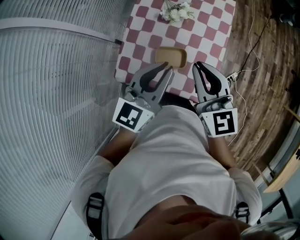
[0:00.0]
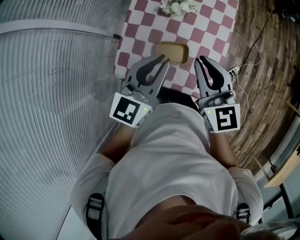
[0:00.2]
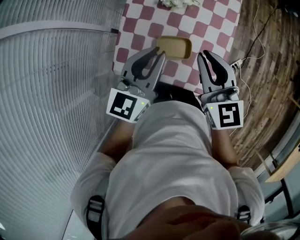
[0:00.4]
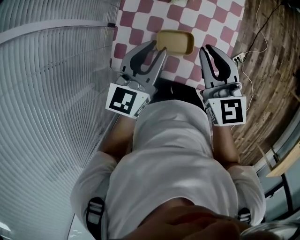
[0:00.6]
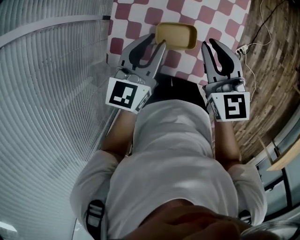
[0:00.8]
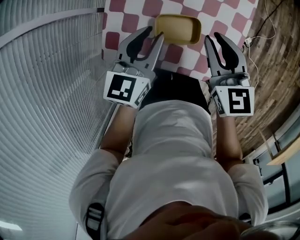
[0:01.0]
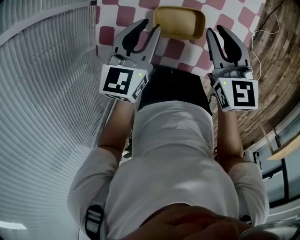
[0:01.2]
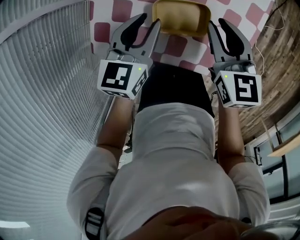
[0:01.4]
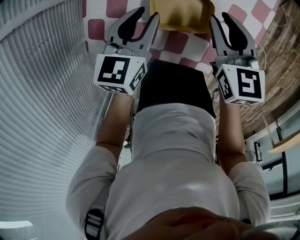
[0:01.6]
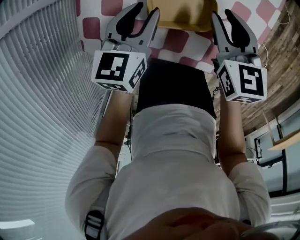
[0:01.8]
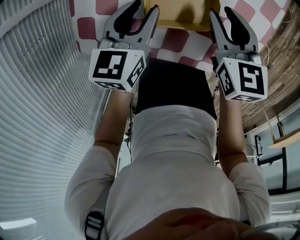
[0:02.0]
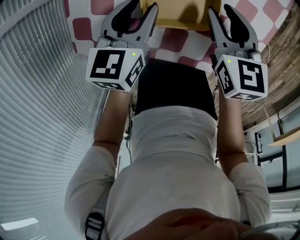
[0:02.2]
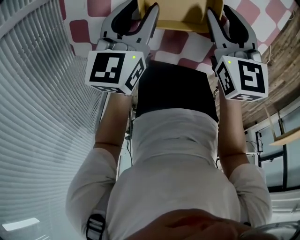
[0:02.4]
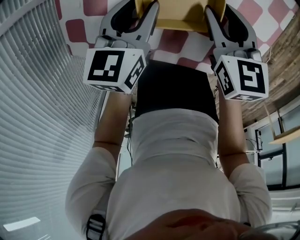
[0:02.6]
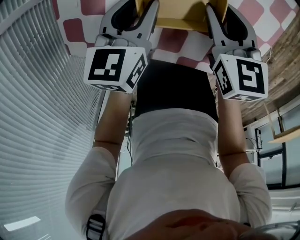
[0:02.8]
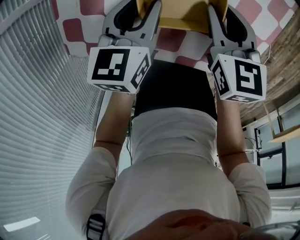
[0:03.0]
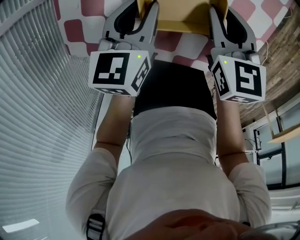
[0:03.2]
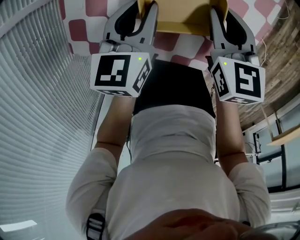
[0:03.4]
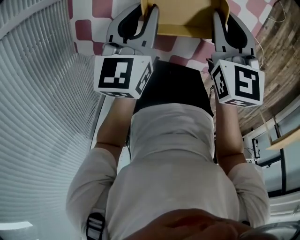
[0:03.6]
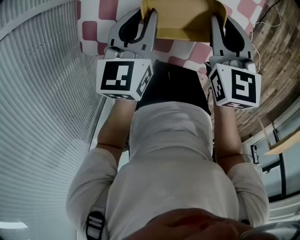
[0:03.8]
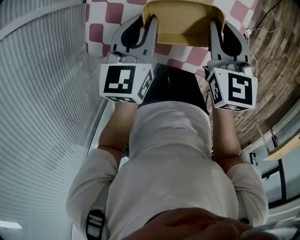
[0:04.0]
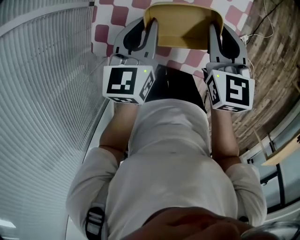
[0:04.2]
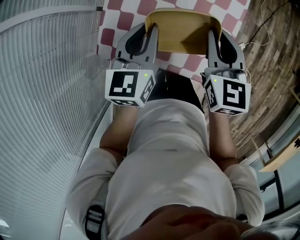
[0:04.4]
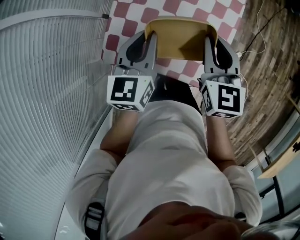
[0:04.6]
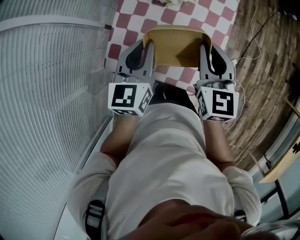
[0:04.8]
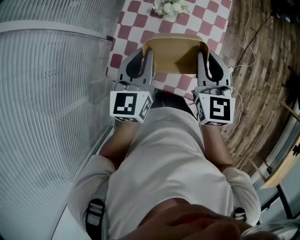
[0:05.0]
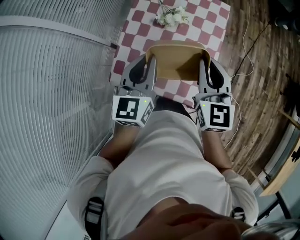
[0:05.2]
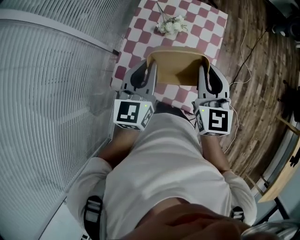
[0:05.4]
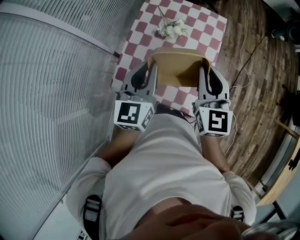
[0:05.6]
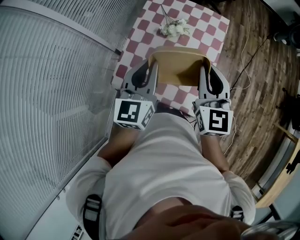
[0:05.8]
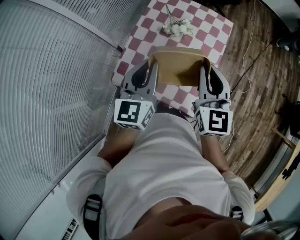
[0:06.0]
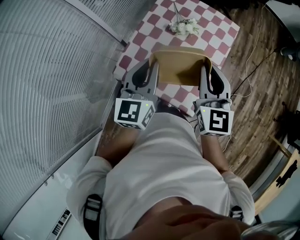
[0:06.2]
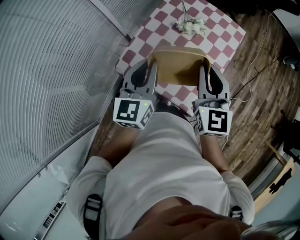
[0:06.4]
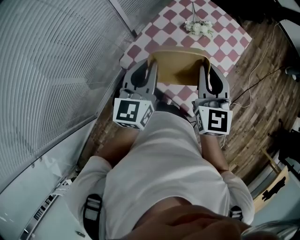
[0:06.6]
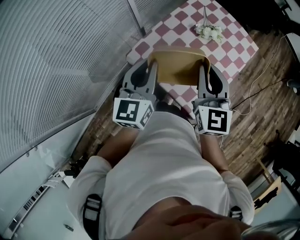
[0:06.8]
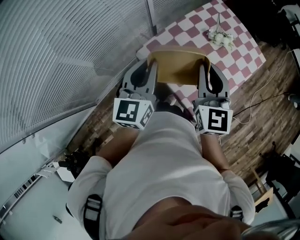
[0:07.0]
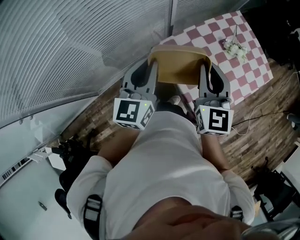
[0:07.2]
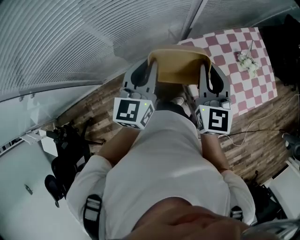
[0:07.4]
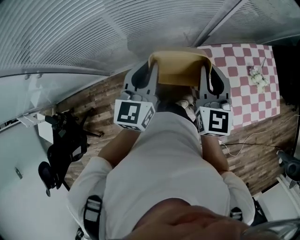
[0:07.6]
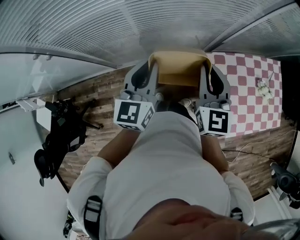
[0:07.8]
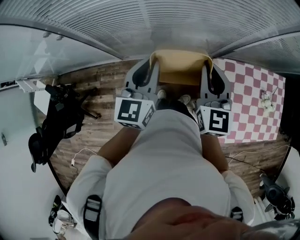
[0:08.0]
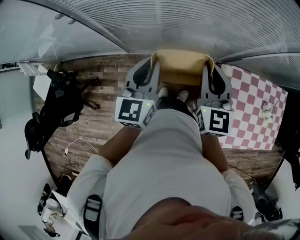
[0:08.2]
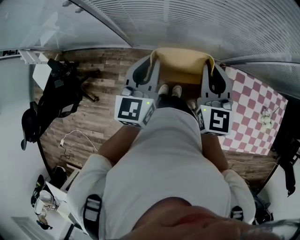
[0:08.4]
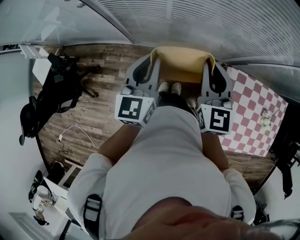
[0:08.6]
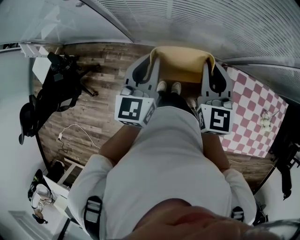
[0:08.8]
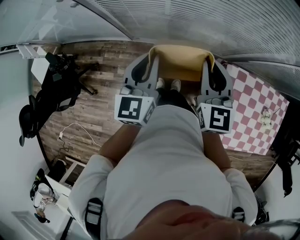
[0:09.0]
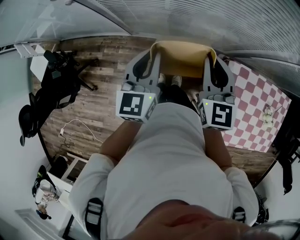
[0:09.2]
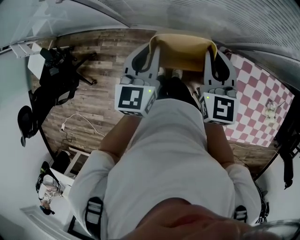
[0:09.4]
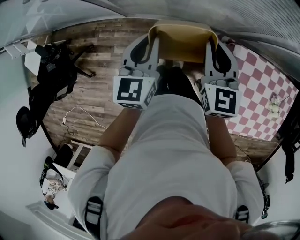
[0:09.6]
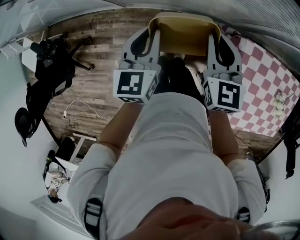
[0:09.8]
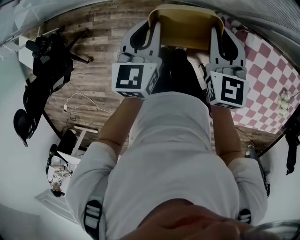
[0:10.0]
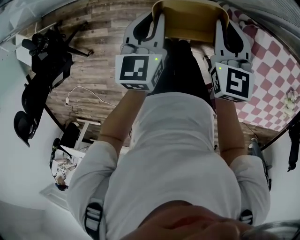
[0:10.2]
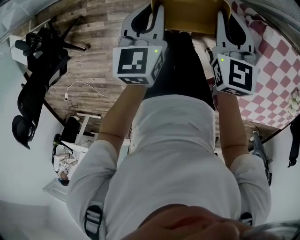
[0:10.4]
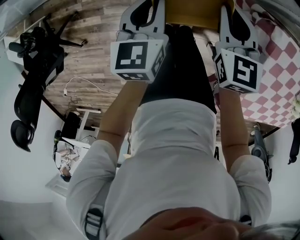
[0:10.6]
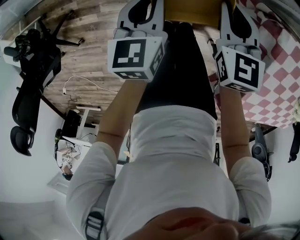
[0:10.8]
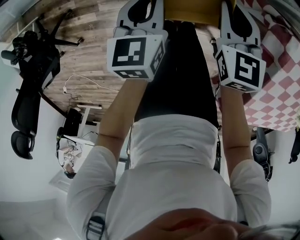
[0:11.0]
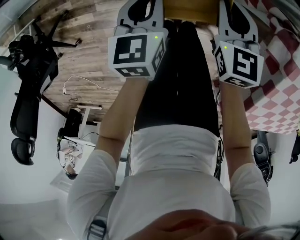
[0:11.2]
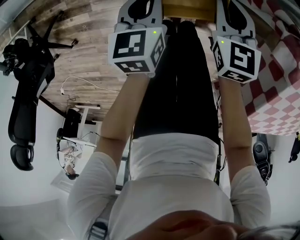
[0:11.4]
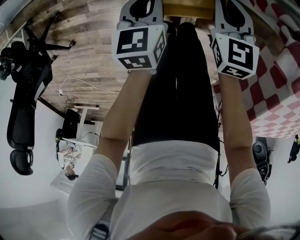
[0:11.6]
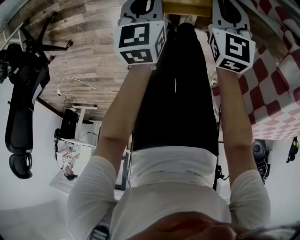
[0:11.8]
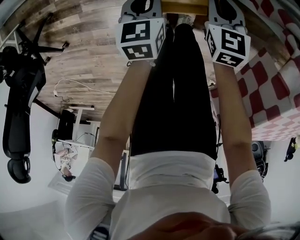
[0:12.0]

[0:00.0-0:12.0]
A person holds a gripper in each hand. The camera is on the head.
0:00.0 to 0:01.6: Both grippers move downward, about 30 cm. The right gripper changes its angle by about 30 degrees. Meanwhile the left gripper rotates some 30 degrees.
0:01.6 to 0:03.0: Both grippers travel together downward, some 10 cm.
0:03.0 to 0:04.4: Both grippers move upward, about 20 cm.
0:04.4 to 0:06.0: Both grippers travel together upward, roughly 20 cm. The right gripper swivels approximately 20 degrees.
0:06.0 to 0:07.6: The right gripper ends up approximately 40 cm from where it was, and changes its angle by some 50 degrees, while the left gripper changes place by approximately 40 cm, and turns by approximately 50 degrees.
0:07.6 to 0:09.0: The left gripper shifts by some 25 cm, and rotates about 30 degrees. Meanwhile the right gripper shifts by approximately 25 cm, and changes its angle by approximately 30 degrees.
0:09.0 to 0:10.4: The two grippers go about 30 cm downward. The left gripper rotates about 20 degrees. Meanwhile the right gripper turns by about 20 degrees.
0:10.4 to 0:12.0: The two grippers go some 35 cm downward.

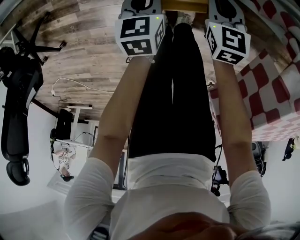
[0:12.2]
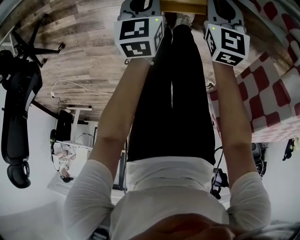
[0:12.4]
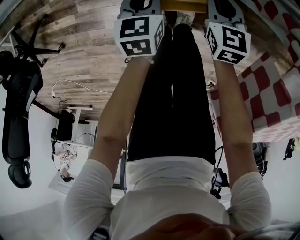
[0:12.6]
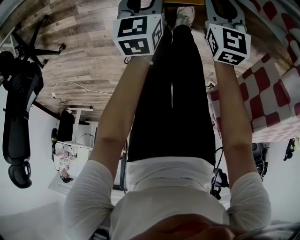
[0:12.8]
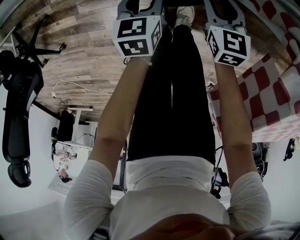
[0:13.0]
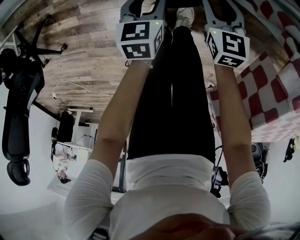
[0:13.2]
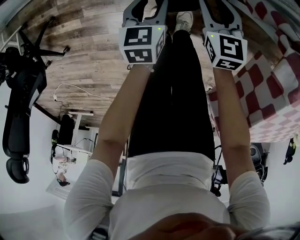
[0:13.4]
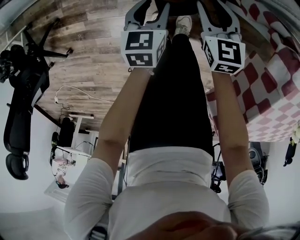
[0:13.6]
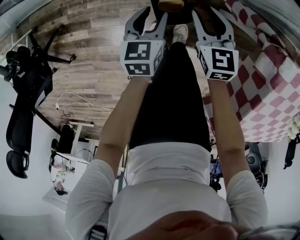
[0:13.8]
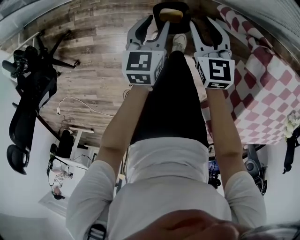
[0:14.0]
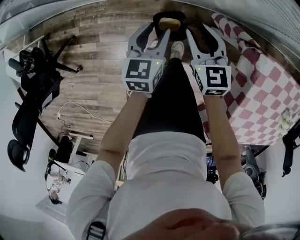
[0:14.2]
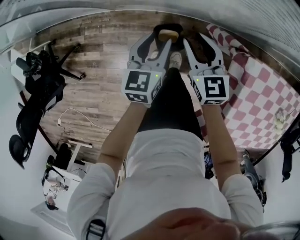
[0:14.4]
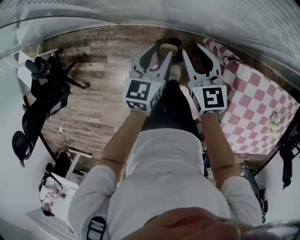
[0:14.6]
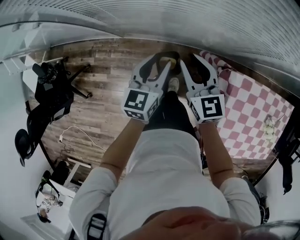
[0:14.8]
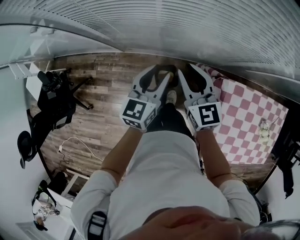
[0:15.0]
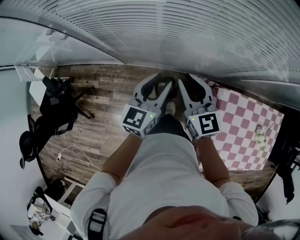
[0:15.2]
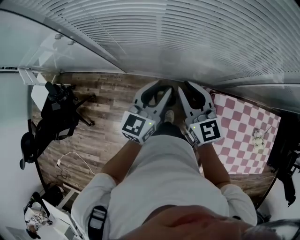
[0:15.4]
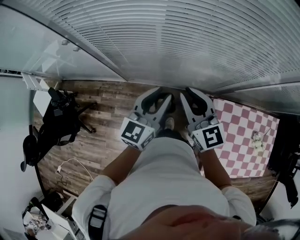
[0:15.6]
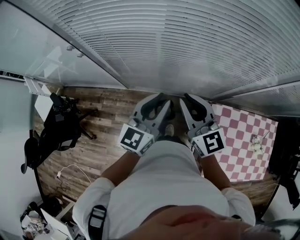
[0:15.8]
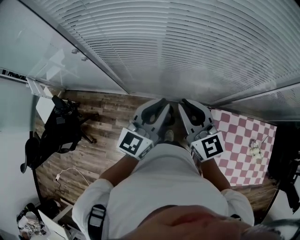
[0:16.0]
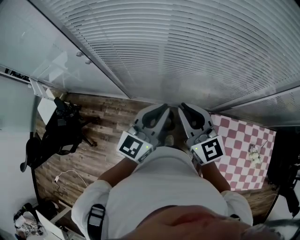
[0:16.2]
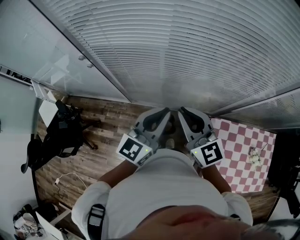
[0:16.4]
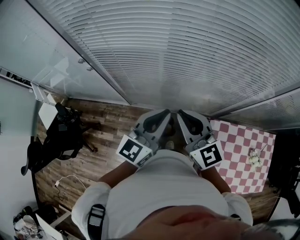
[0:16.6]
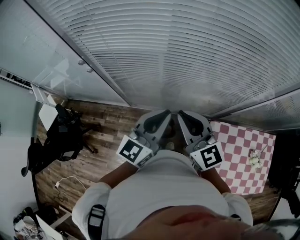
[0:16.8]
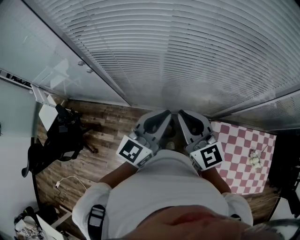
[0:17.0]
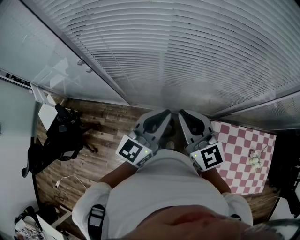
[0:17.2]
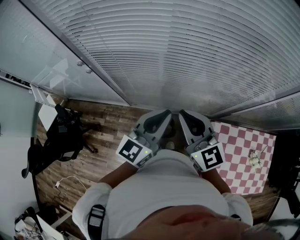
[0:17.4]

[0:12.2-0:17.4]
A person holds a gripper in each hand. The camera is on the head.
0:12.2 to 0:14.0: Both grippers move upward, approximately 20 cm. The left gripper opens. The right gripper opens its fingers.
0:14.0 to 0:15.6: Both grippers travel together upward, about 50 cm. The right gripper points its fingers roughly 30 degrees further upward; the left gripper tilts its fingers approximately 40 degrees upward.
0:15.6 to 0:17.4: The two grippers go some 10 cm upward. The left gripper closes up.

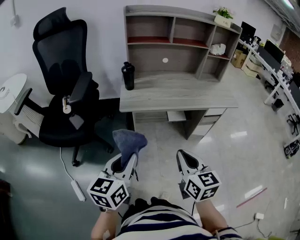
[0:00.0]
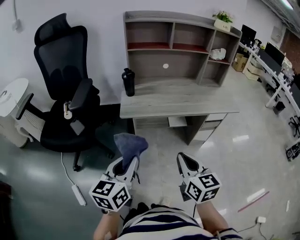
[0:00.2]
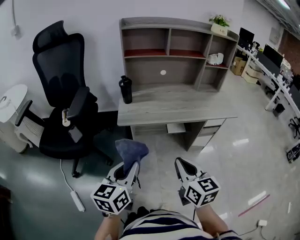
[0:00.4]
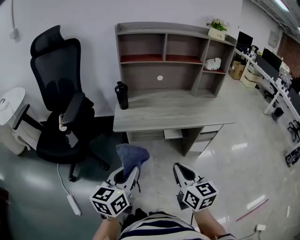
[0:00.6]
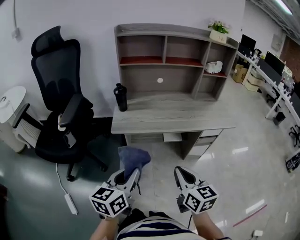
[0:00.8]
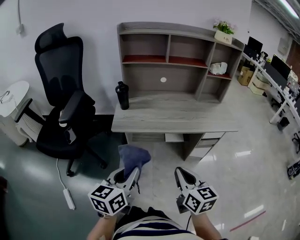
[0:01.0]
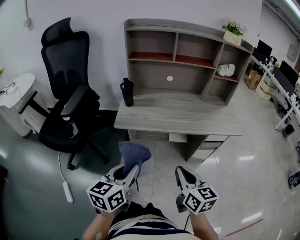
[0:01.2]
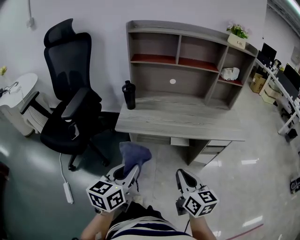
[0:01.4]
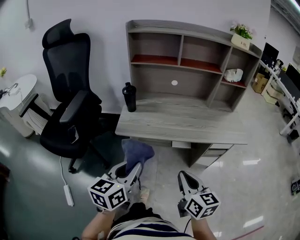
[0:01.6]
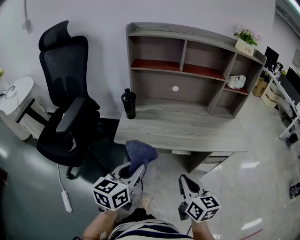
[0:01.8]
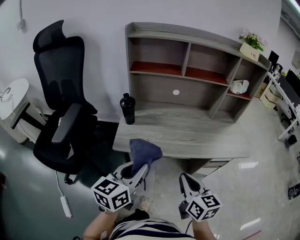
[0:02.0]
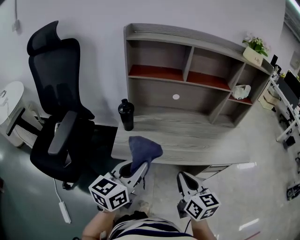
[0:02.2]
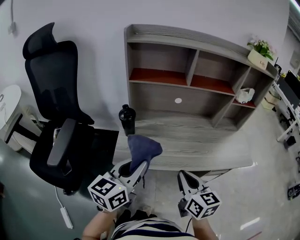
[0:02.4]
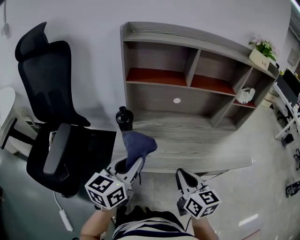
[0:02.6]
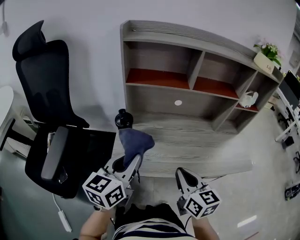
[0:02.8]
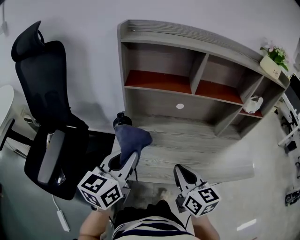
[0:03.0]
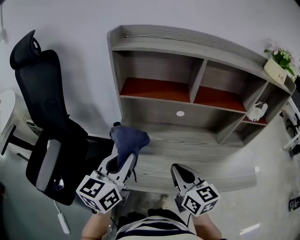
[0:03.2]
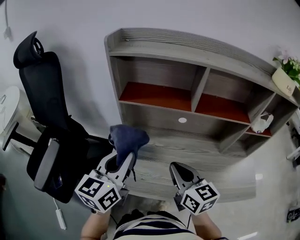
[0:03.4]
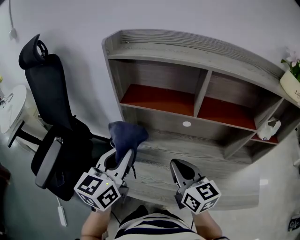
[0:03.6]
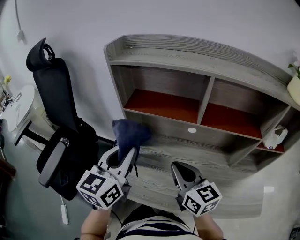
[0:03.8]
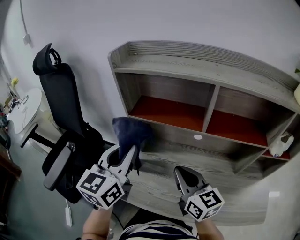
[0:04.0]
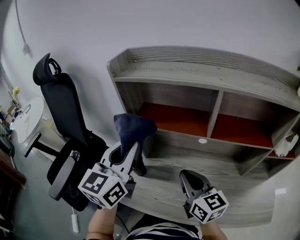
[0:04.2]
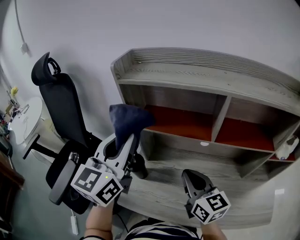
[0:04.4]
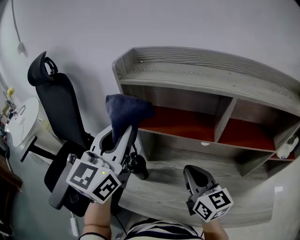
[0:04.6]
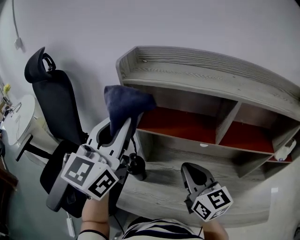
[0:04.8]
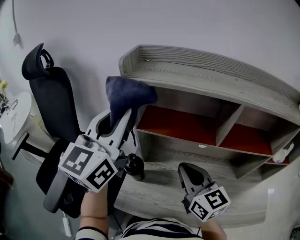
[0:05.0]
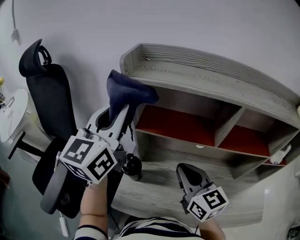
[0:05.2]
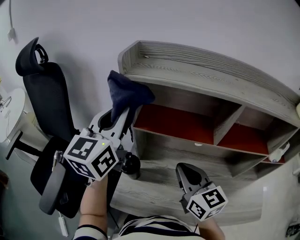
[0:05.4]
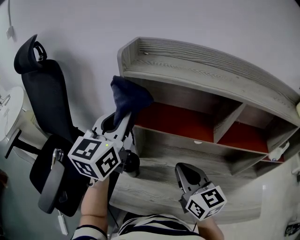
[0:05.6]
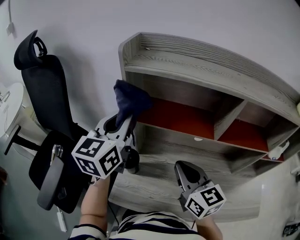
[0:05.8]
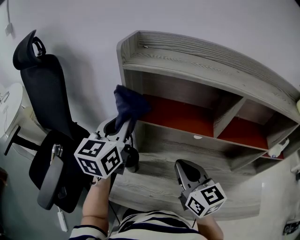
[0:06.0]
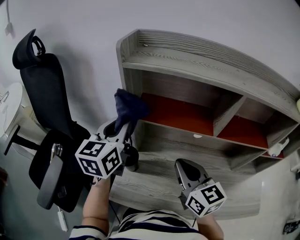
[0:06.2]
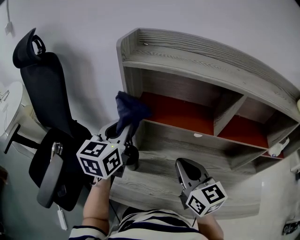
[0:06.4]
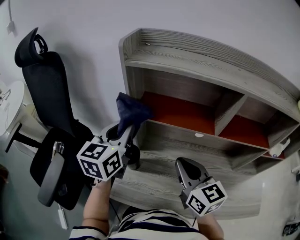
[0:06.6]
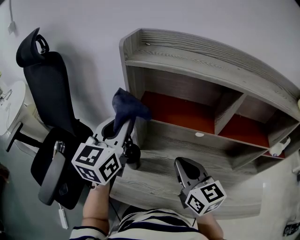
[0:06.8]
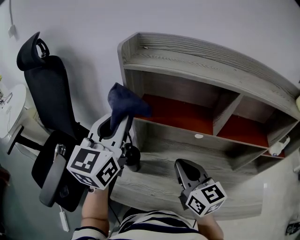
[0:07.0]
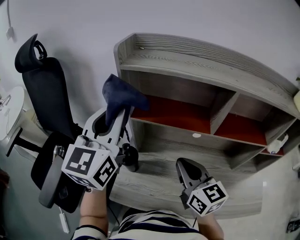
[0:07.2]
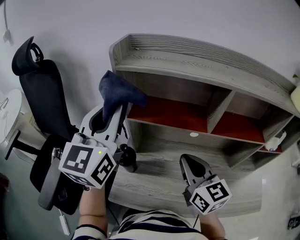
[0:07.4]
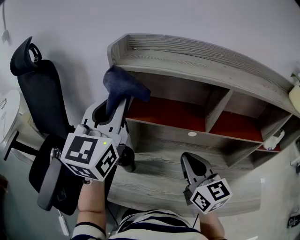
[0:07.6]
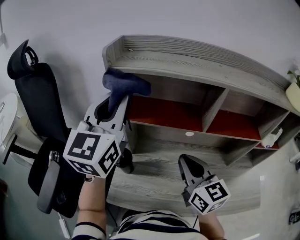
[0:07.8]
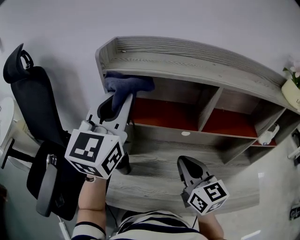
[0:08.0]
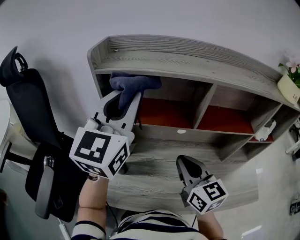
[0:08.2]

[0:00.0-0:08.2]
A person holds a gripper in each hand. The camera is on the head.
0:00.0 to 0:01.6: The grippers both shift forward and to the right by roughly 15 cm.
0:01.6 to 0:03.2: The grippers both shift forward by some 30 cm.
0:03.2 to 0:05.0: The left gripper travels upward and forward by roughly 25 cm, and turns by some 30 degrees. Meanwhile the right gripper travels forward and upward by about 15 cm.
0:05.0 to 0:06.6: The left gripper travels downward by about 15 cm, and swivels about 20 degrees.
0:06.6 to 0:08.2: The left gripper shifts about 20 cm upward and to the right, and changes its angle by about 30 degrees. The right gripper goes about 5 cm to the right.
